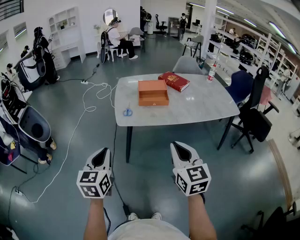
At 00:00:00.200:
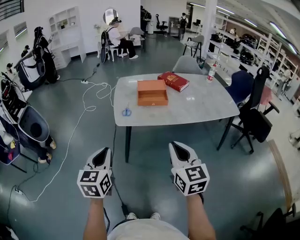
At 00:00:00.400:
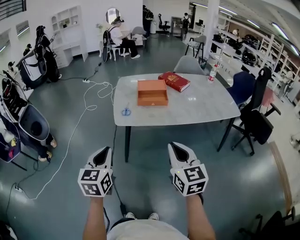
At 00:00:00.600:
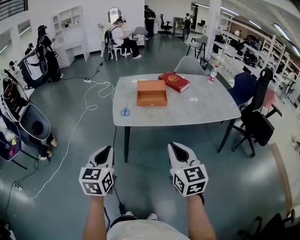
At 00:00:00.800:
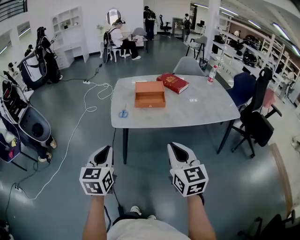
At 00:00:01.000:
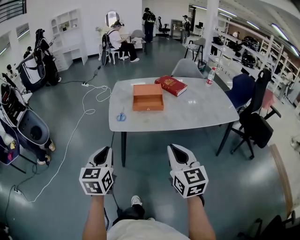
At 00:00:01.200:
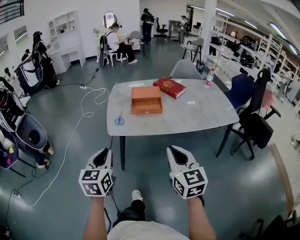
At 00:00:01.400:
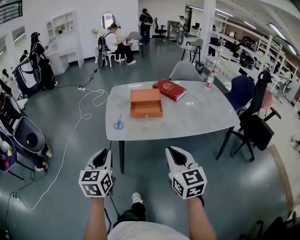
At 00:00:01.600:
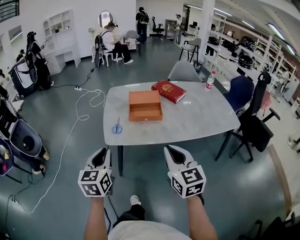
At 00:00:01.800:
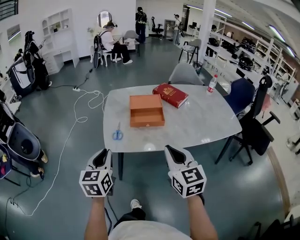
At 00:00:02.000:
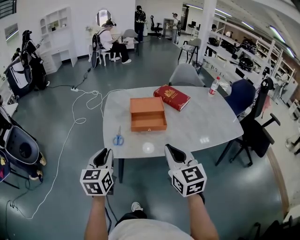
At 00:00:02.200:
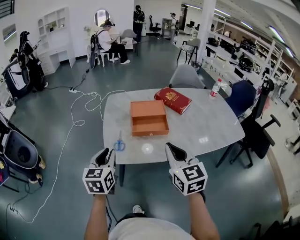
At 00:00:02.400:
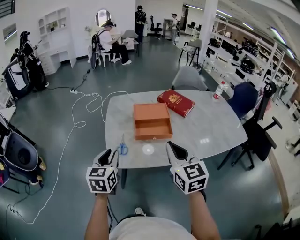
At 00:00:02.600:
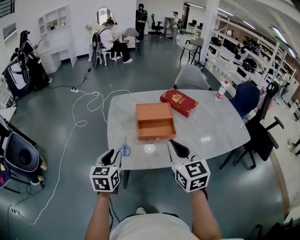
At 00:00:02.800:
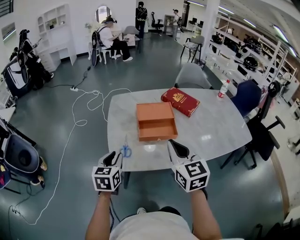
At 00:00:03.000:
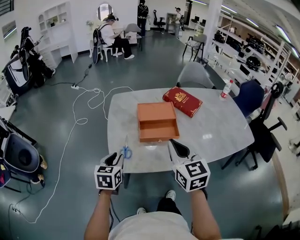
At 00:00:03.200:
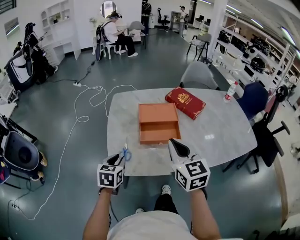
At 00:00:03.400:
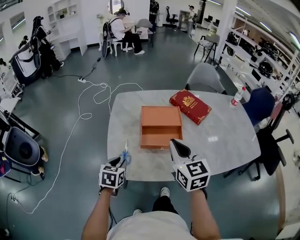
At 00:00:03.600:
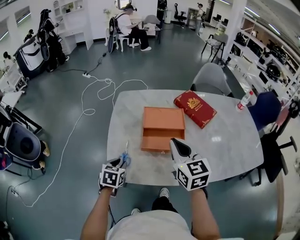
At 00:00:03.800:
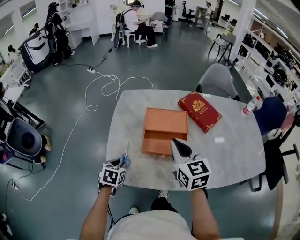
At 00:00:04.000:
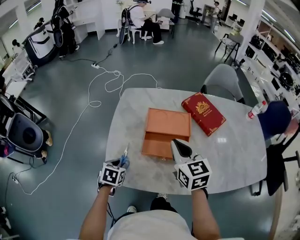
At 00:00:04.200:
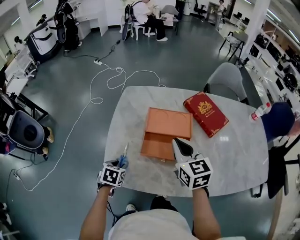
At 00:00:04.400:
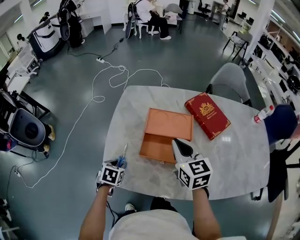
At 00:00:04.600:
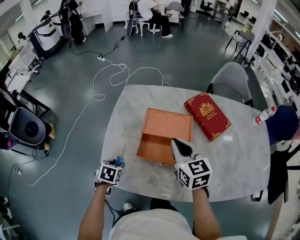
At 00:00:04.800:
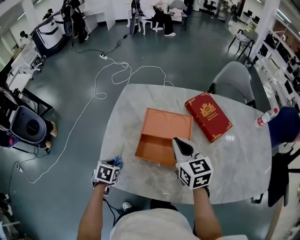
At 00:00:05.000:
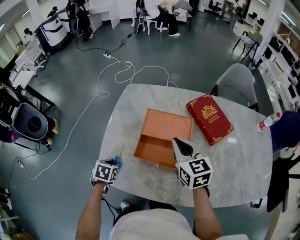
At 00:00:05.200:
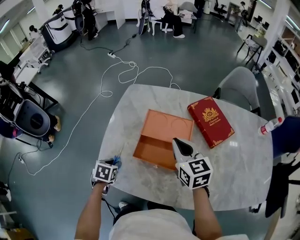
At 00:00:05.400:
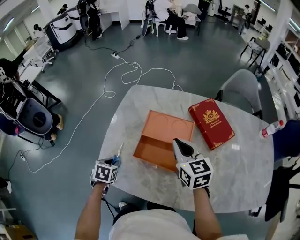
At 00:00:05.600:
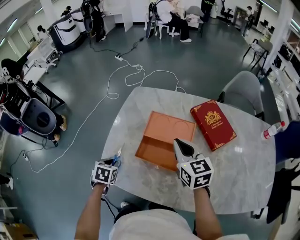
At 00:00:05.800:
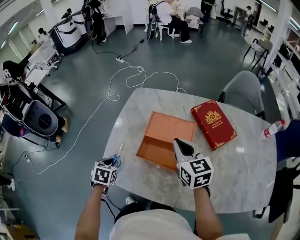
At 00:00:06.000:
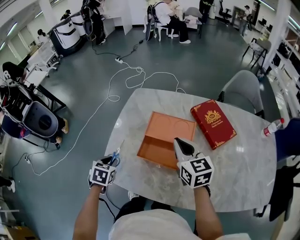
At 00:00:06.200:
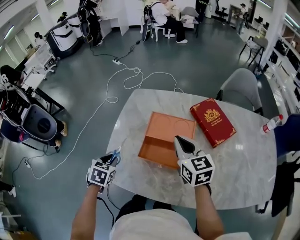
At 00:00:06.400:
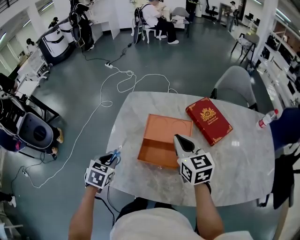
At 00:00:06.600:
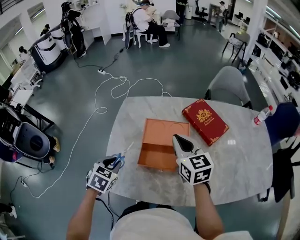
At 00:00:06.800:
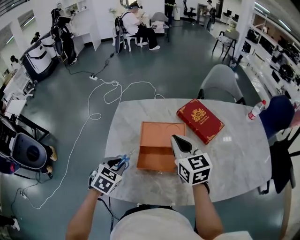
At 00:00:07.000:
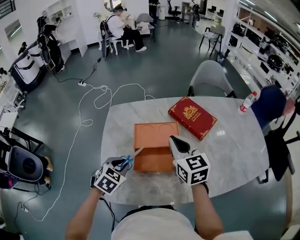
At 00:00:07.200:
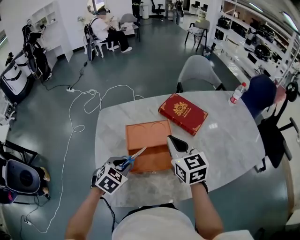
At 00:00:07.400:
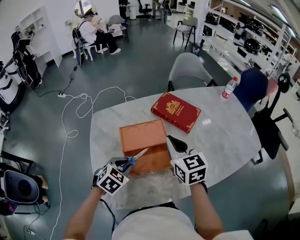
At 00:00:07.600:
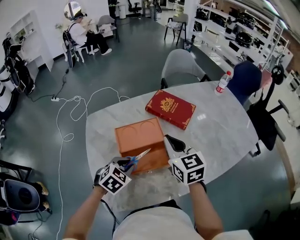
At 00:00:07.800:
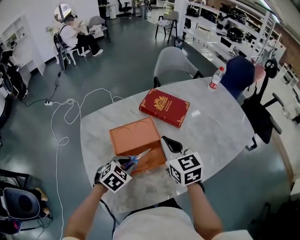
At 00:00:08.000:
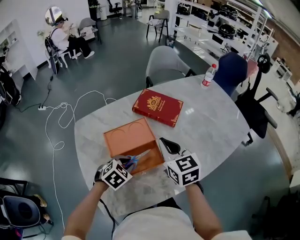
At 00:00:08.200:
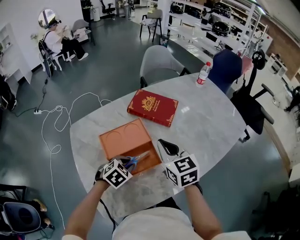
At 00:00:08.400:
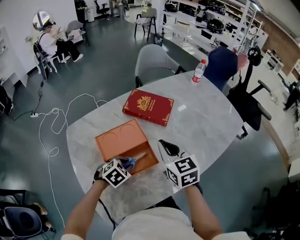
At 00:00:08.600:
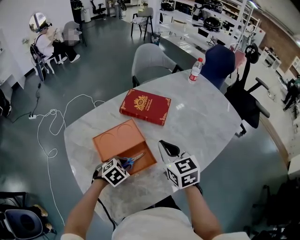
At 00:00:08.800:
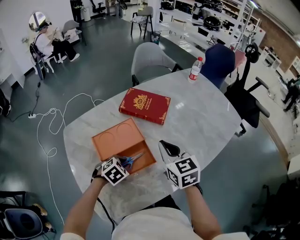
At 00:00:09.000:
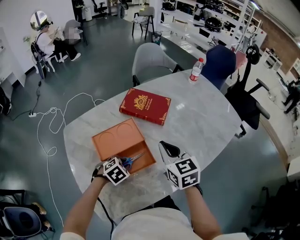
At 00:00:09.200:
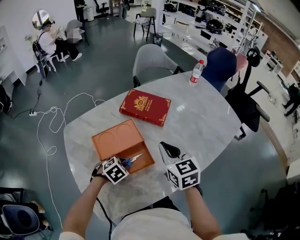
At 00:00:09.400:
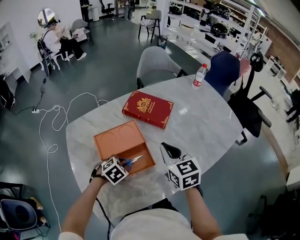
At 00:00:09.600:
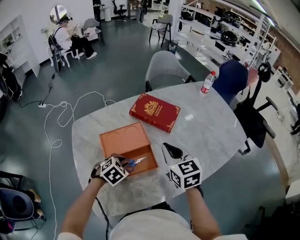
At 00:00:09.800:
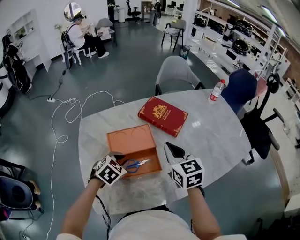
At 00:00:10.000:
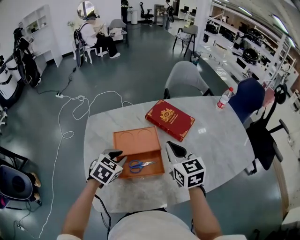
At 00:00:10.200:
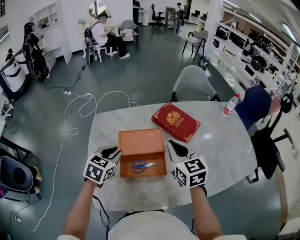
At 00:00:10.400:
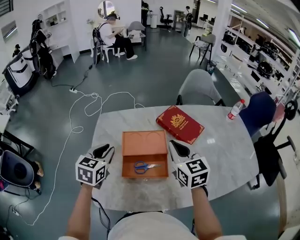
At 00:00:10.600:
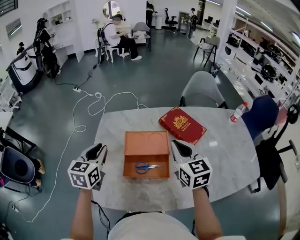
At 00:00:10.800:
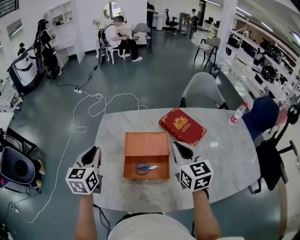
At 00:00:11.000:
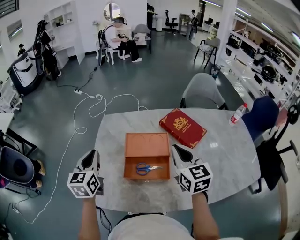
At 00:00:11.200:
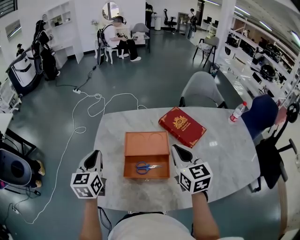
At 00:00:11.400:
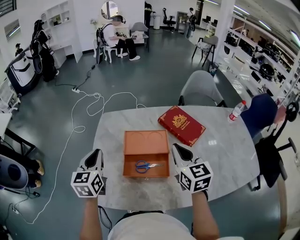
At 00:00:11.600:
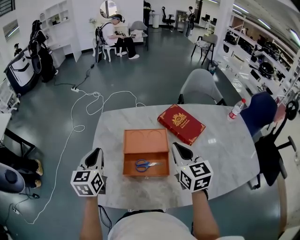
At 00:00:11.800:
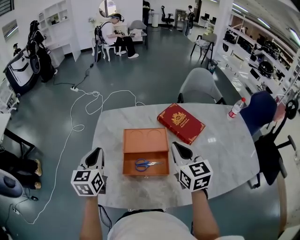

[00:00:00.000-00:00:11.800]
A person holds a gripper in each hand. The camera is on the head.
00:00:00.000 to 00:00:01.400: The grippers both shift forward and to the right by approximately 10 cm.
00:00:01.400 to 00:00:03.000: The left gripper travels forward and downward by roughly 30 cm. The right gripper is displaced forward by approximately 30 cm.
00:00:03.000 to 00:00:04.400: The right gripper shifts approximately 20 cm forward; the left gripper is displaced downward and forward by roughly 15 cm, and tilts its fingers roughly 30 degrees downward.
00:00:04.400 to 00:00:06.000: The left gripper travels upward by about 5 cm.
00:00:06.000 to 00:00:07.400: The right gripper changes place by some 5 cm, and rotates some 30 degrees; the left gripper changes place by roughly 15 cm, and rolls clockwise, seen from behind, by some 50 degrees.
00:00:07.400 to 00:00:08.800: The left gripper is displaced downward, to the right and forward by approximately 10 cm, and turns by roughly 30 degrees. Meanwhile the right gripper travels to the right by approximately 5 cm.
00:00:08.800 to 00:00:10.400: The right gripper changes place by roughly 10 cm, and swivels some 20 degrees; the left gripper moves upward, roughly 20 cm, and angles its fingers upward, by about 30 degrees.
00:00:10.400 to 00:00:11.800: The left gripper shifts approximately 5 cm to the left, and turns by about 20 degrees.

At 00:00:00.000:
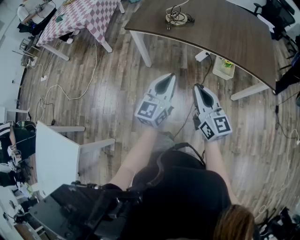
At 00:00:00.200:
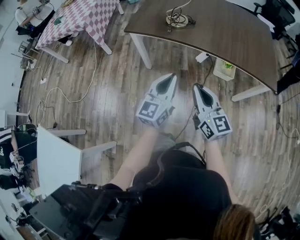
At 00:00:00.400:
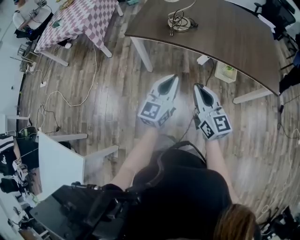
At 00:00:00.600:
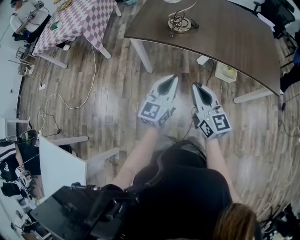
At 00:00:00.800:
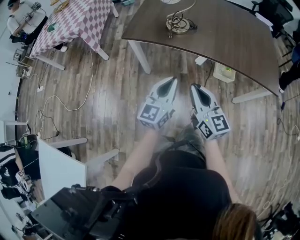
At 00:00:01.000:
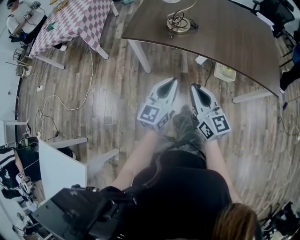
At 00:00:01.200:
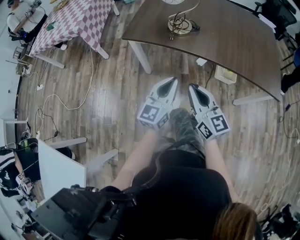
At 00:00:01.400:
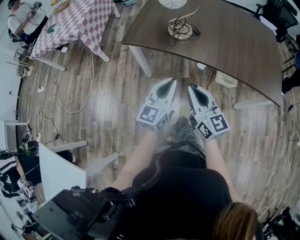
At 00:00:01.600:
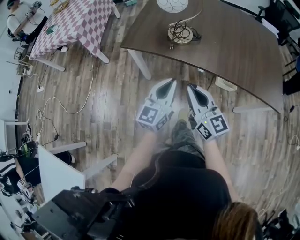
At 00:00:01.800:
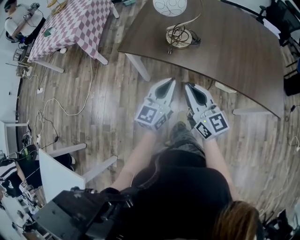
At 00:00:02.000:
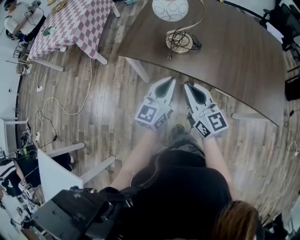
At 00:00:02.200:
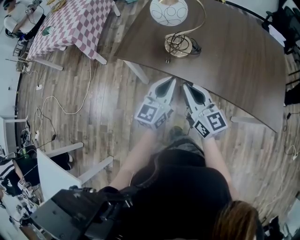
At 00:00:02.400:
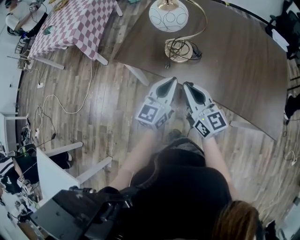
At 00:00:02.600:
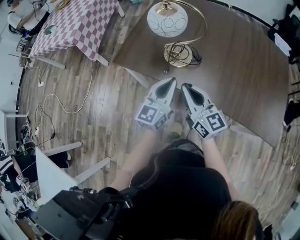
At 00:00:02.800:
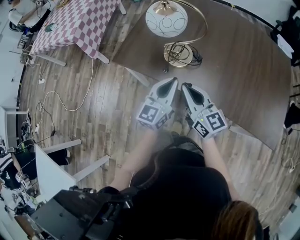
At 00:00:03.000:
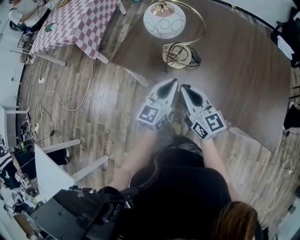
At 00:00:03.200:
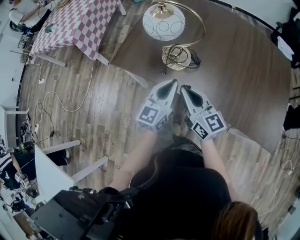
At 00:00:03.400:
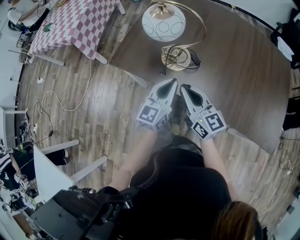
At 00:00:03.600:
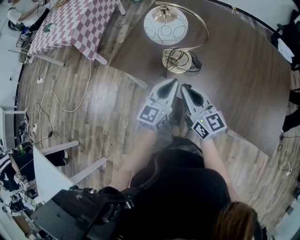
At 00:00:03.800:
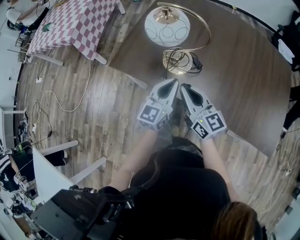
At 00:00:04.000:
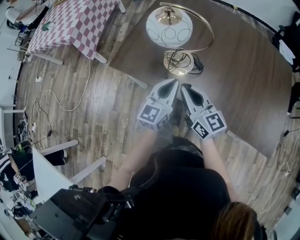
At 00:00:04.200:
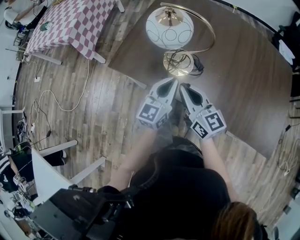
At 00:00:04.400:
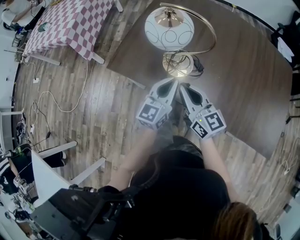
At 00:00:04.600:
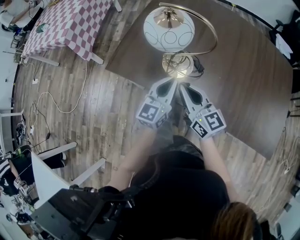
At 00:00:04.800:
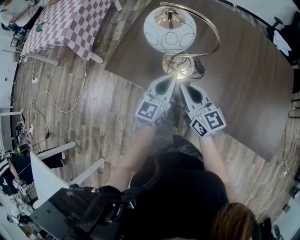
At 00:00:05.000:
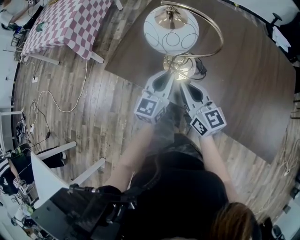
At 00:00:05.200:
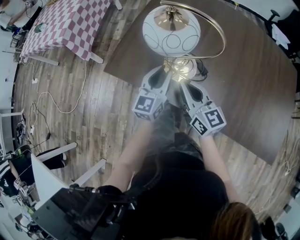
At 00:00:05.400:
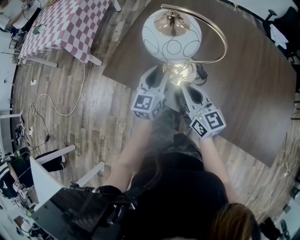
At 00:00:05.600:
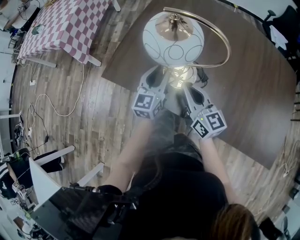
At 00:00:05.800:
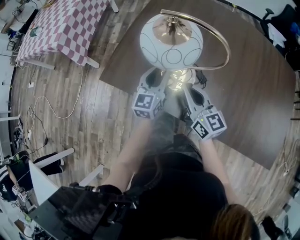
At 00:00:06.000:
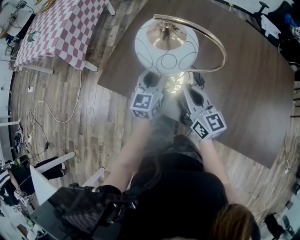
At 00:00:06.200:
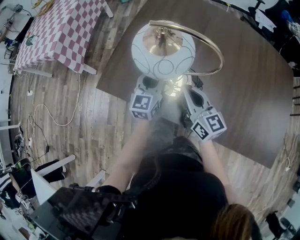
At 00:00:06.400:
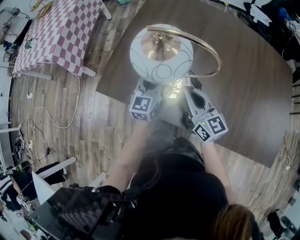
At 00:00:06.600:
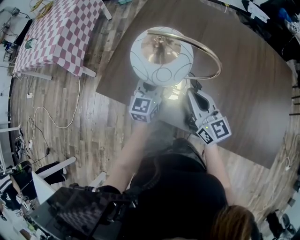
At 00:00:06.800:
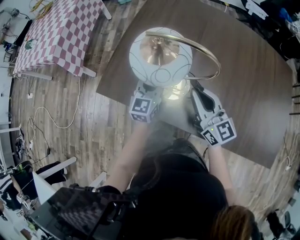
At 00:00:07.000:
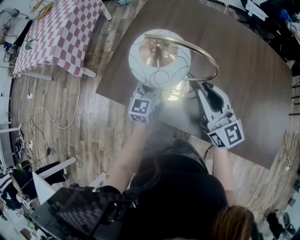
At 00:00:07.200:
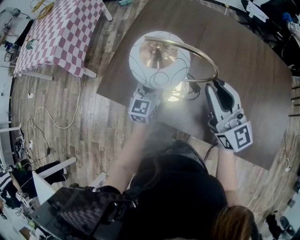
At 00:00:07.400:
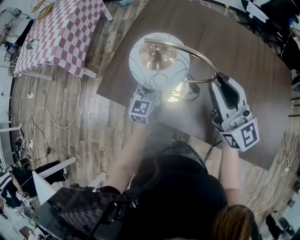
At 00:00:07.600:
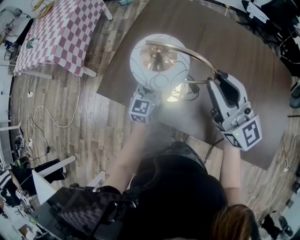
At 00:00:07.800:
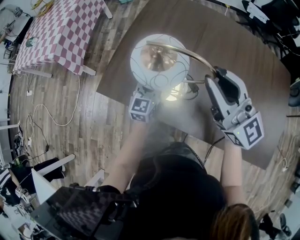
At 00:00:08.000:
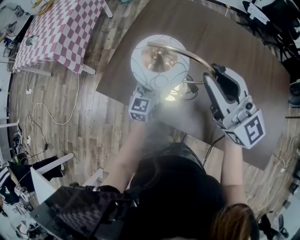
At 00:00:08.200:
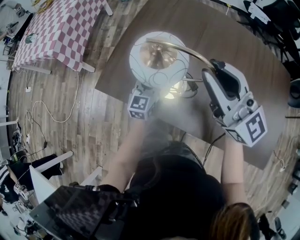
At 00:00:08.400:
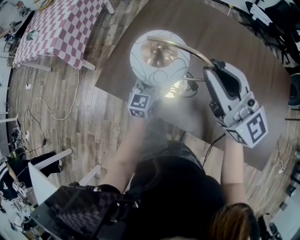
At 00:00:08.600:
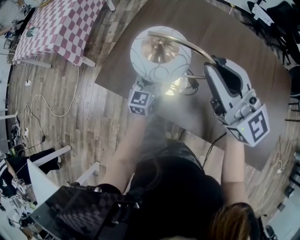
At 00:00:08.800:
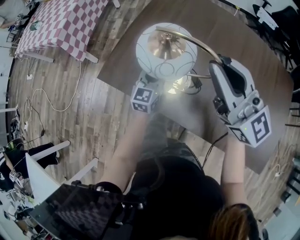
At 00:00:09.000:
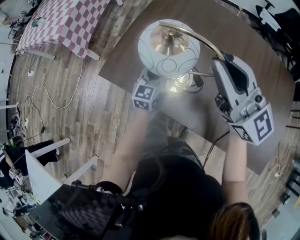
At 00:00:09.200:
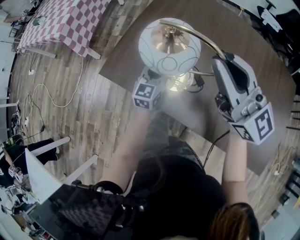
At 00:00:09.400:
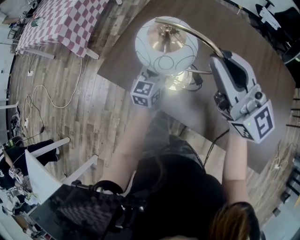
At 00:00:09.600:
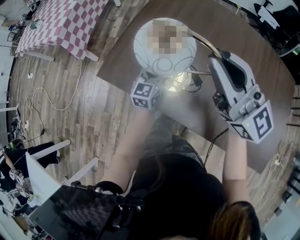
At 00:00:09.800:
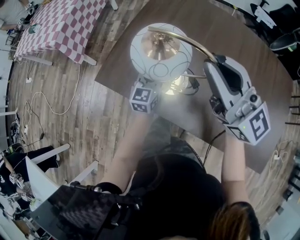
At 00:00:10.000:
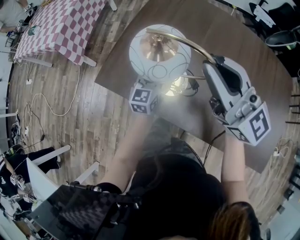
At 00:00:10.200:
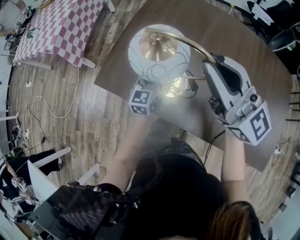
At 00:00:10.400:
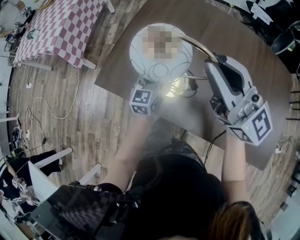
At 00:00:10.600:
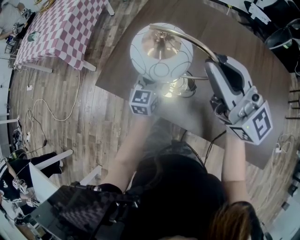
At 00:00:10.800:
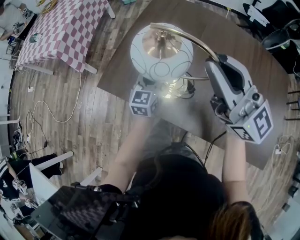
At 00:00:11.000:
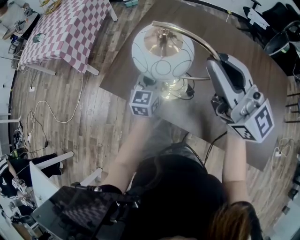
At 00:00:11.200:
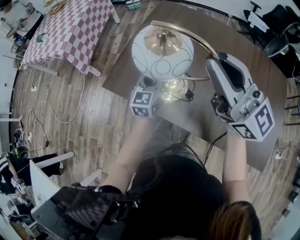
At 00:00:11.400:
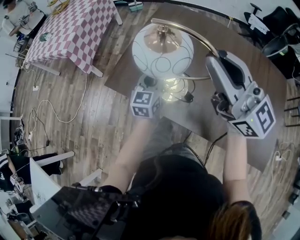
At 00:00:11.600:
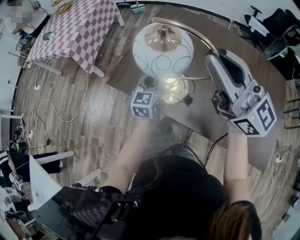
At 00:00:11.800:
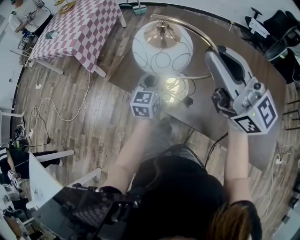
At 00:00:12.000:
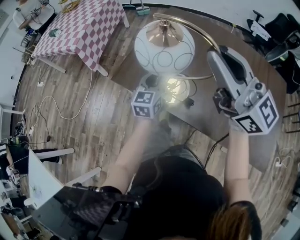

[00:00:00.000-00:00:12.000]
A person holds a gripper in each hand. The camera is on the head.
00:00:00.000 to 00:00:01.600: Both grippers travel together forward, roughly 15 cm.
00:00:01.600 to 00:00:03.000: The right gripper is displaced forward by approximately 15 cm. Meanwhile the left gripper travels forward and to the right by approximately 20 cm.
00:00:03.000 to 00:00:04.400: The grippers both shift forward by approximately 5 cm.
00:00:04.400 to 00:00:06.000: The right gripper moves forward and downward, roughly 10 cm, while the left gripper shifts some 15 cm forward and downward, and opens.
00:00:06.000 to 00:00:07.600: The right gripper heads upward, covering about 20 cm, changes its angle by some 30 degrees, and opens its fingers.
00:00:07.600 to 00:00:09.000: The right gripper changes place by some 5 cm.
00:00:09.000 to 00:00:10.400: Both grippers stay put.
00:00:10.400 to 00:00:12.000: The grippers both shift upward and backward by approximately 10 cm.
